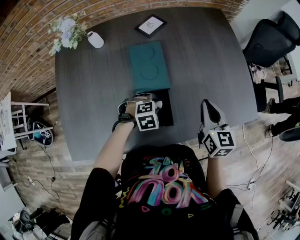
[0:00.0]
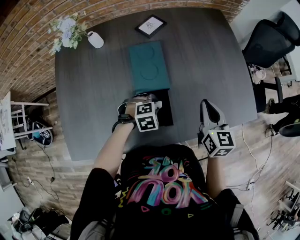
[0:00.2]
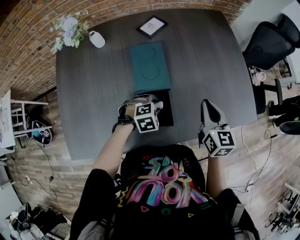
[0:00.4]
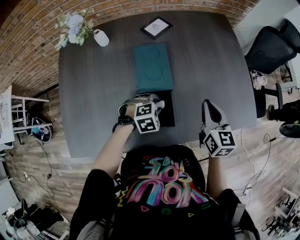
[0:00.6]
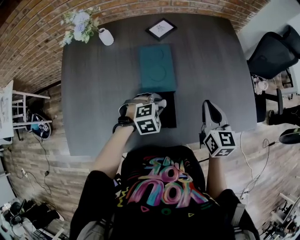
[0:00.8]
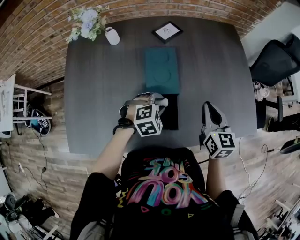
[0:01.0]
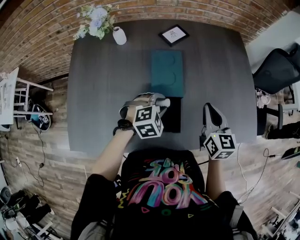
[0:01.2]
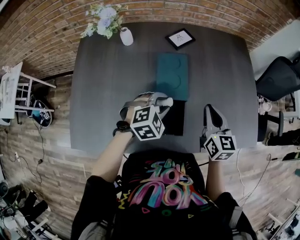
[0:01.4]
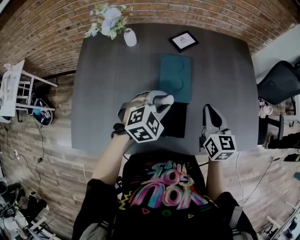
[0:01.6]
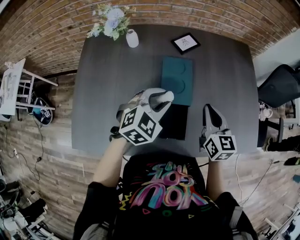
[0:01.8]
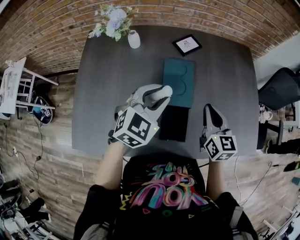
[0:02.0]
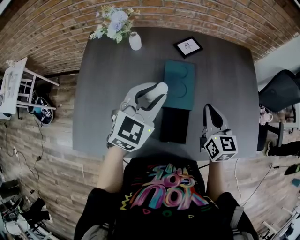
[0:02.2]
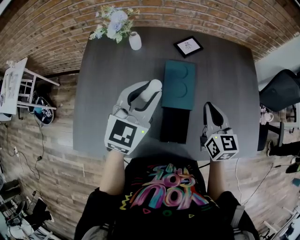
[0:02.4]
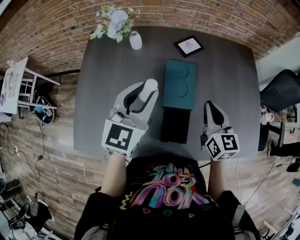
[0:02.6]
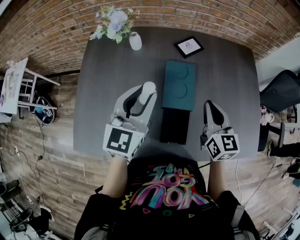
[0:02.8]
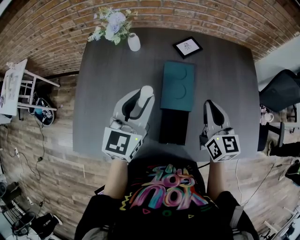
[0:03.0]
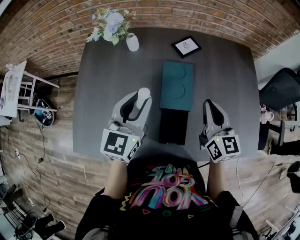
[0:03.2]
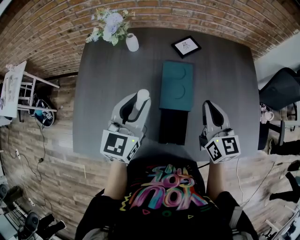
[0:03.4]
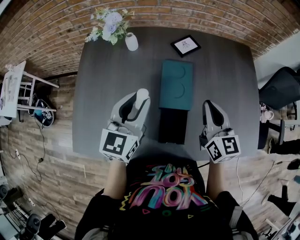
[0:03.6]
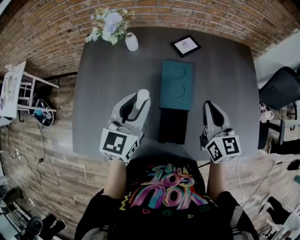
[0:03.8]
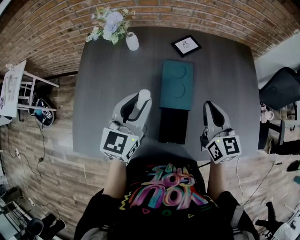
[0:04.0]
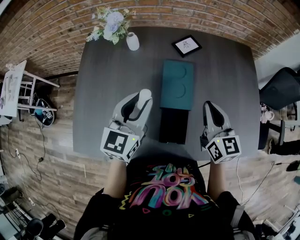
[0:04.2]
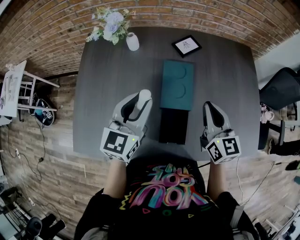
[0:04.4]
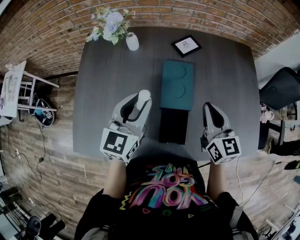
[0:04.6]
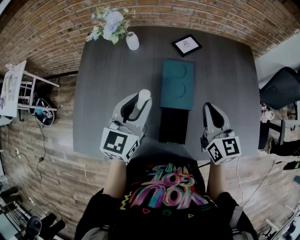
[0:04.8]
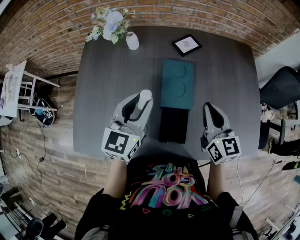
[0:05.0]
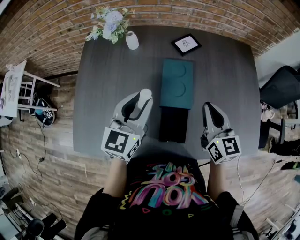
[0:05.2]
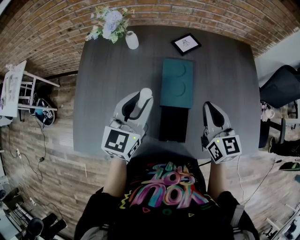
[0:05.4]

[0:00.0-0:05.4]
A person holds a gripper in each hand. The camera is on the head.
0:00.0 to 0:01.4: The right gripper heads to the left, covering approximately 5 cm. The left gripper shifts approximately 15 cm upward, and changes its angle by some 30 degrees.
0:01.4 to 0:02.8: The right gripper is displaced to the left by approximately 5 cm. Meanwhile the left gripper is displaced upward and to the left by approximately 20 cm, and points its fingers about 40 degrees further upward.
0:02.8 to 0:04.0: The grippers make only small movements.
0:04.0 to 0:05.4: The two grippers keep their place.

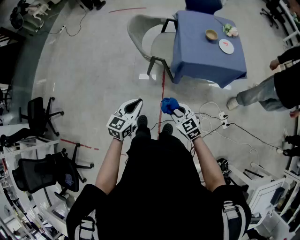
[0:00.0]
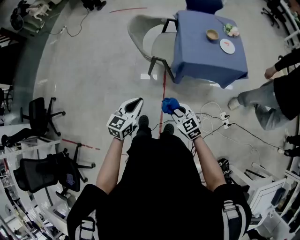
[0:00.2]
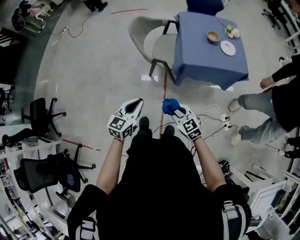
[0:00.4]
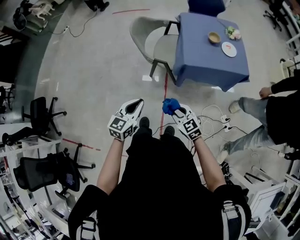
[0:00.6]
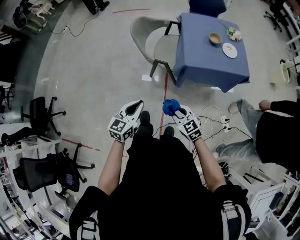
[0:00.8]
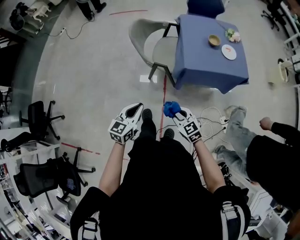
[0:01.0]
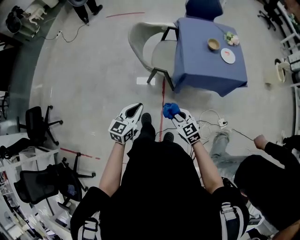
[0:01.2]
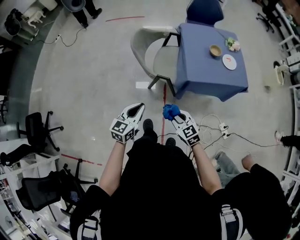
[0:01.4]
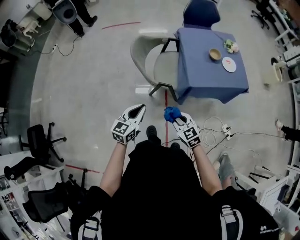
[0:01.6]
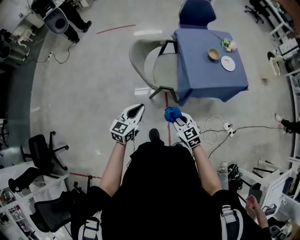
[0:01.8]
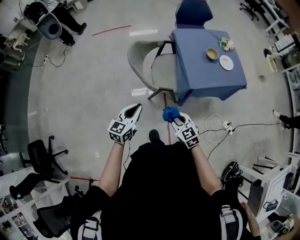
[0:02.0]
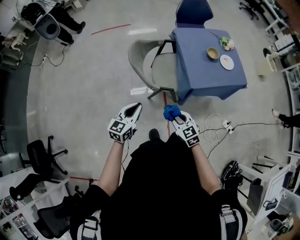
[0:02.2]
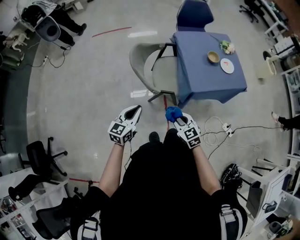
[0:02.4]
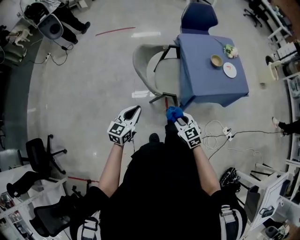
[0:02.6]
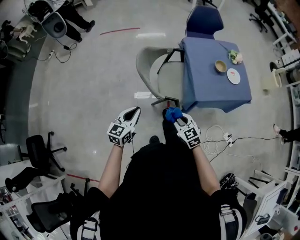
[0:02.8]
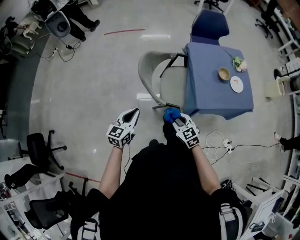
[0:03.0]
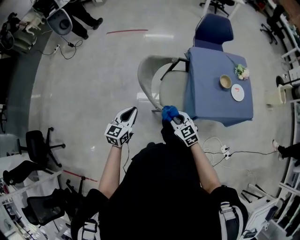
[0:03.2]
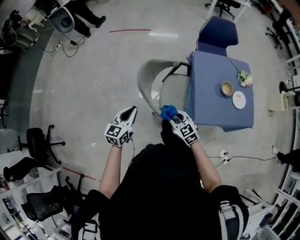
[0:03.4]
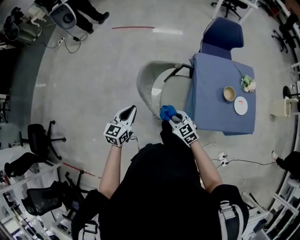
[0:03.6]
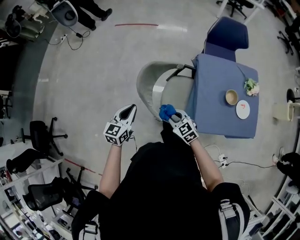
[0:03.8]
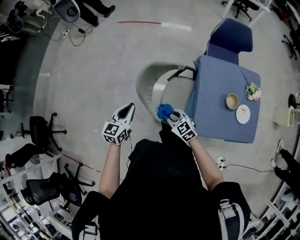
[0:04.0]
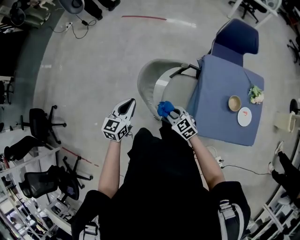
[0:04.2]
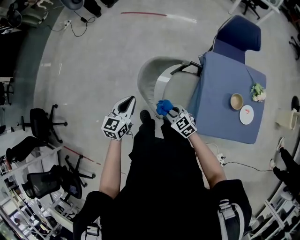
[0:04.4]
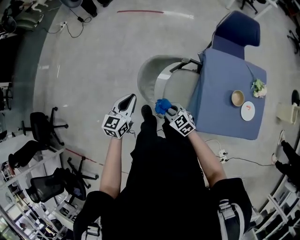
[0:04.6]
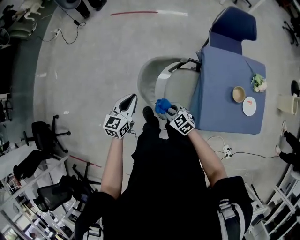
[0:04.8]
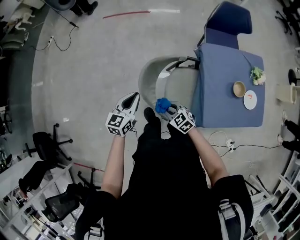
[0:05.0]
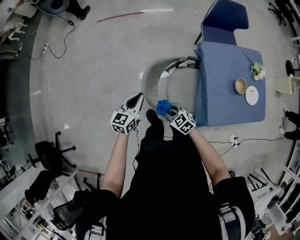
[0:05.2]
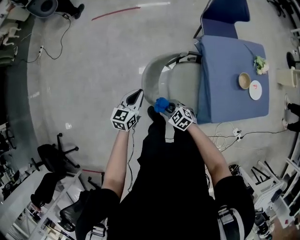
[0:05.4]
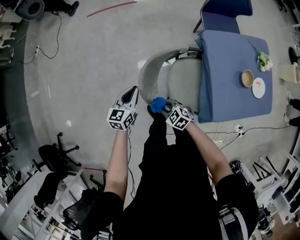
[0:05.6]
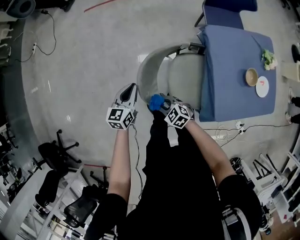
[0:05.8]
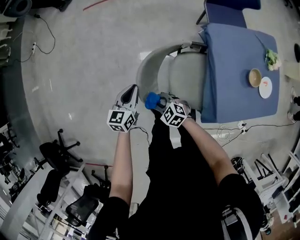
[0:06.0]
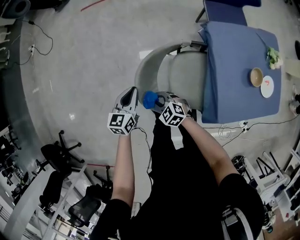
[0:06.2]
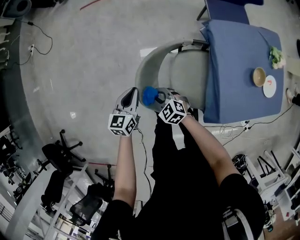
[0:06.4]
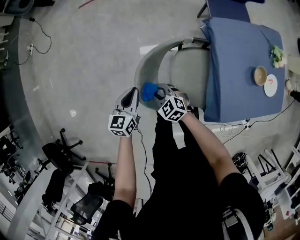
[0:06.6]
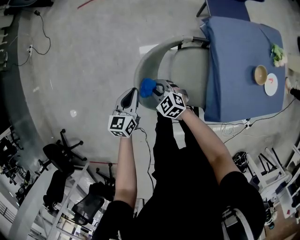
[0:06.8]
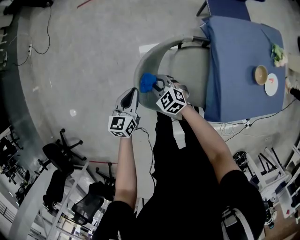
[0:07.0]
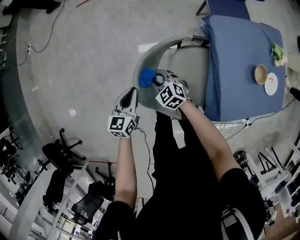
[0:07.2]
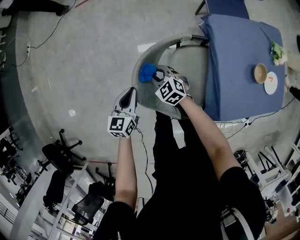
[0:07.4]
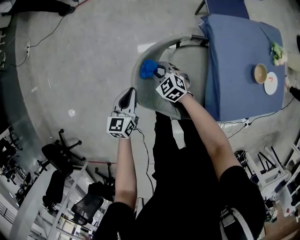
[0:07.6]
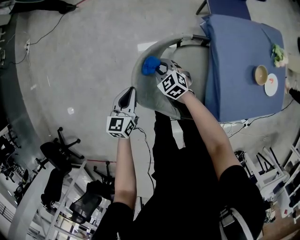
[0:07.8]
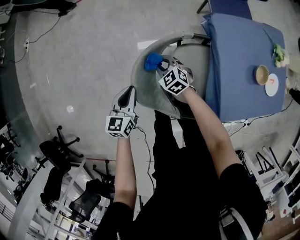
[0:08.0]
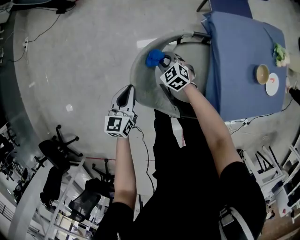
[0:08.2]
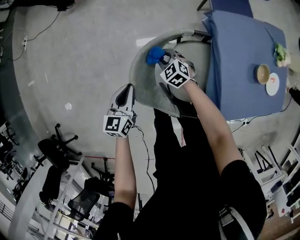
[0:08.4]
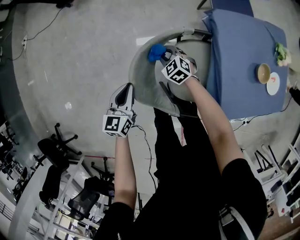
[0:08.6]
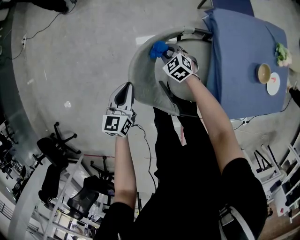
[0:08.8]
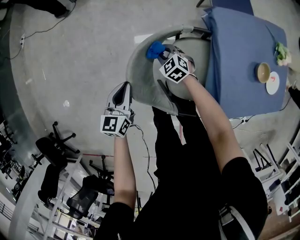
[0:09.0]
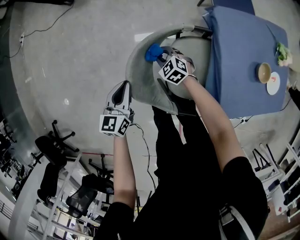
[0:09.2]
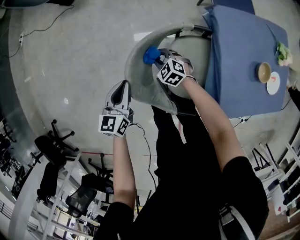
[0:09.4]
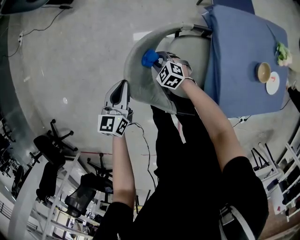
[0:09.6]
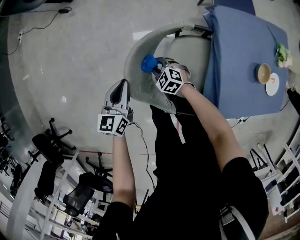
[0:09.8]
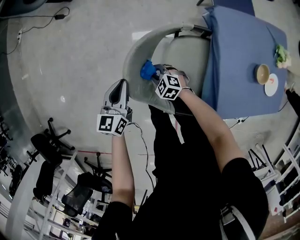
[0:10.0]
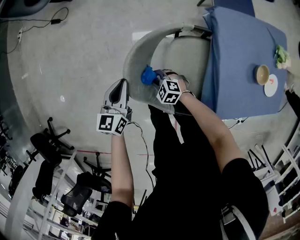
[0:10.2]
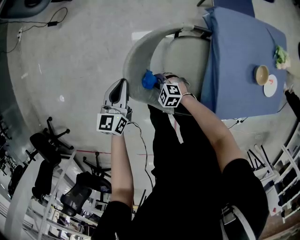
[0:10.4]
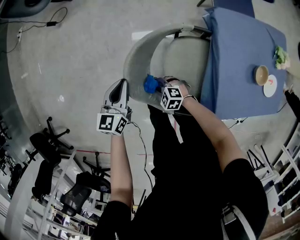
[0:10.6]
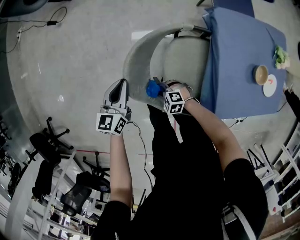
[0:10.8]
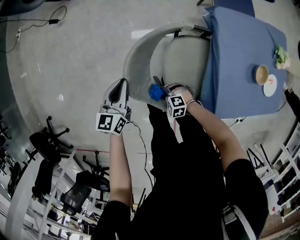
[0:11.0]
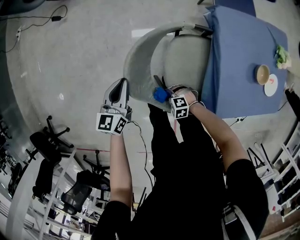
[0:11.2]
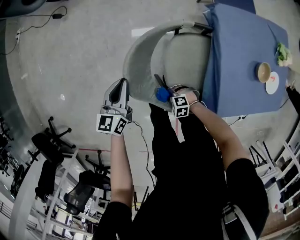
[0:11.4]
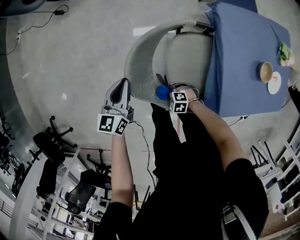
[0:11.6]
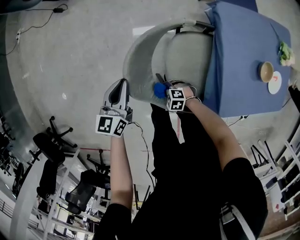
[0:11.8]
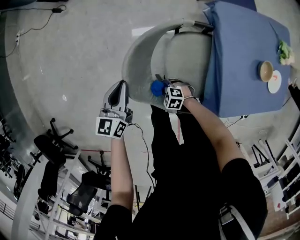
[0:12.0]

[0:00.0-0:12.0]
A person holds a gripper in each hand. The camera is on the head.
0:00.0 to 0:01.6: The right gripper goes about 20 cm forward and to the left; the left gripper travels forward by some 20 cm.
0:01.6 to 0:03.0: The right gripper heads forward, covering roughly 15 cm, while the left gripper heads forward and to the left, covering some 20 cm.
0:03.0 to 0:04.4: The grippers both shift forward by roughly 20 cm. The right gripper rotates some 20 degrees.
0:04.4 to 0:06.0: The left gripper shifts some 25 cm forward and downward. Meanwhile the right gripper goes roughly 25 cm downward, forward and to the left.
0:06.0 to 0:07.6: The right gripper travels forward and to the right by approximately 15 cm.
0:07.6 to 0:09.0: The right gripper travels downward by approximately 10 cm.
0:09.0 to 0:10.4: The right gripper moves backward and to the left, some 20 cm, and changes its angle by some 30 degrees.

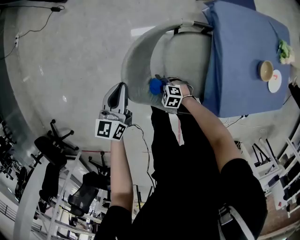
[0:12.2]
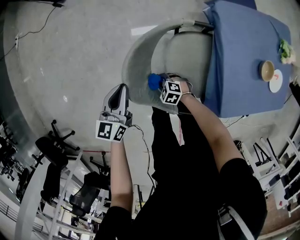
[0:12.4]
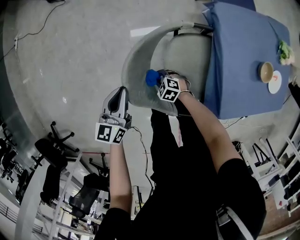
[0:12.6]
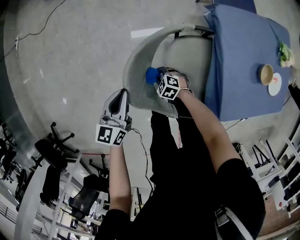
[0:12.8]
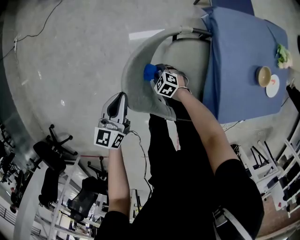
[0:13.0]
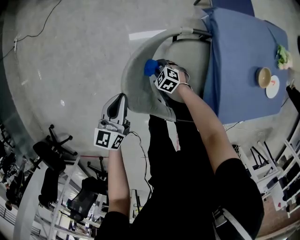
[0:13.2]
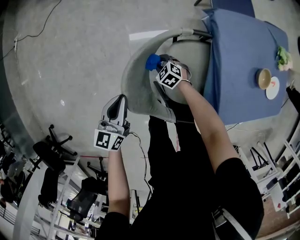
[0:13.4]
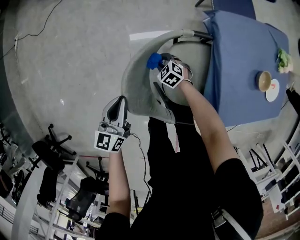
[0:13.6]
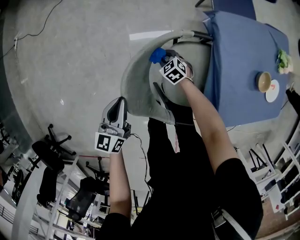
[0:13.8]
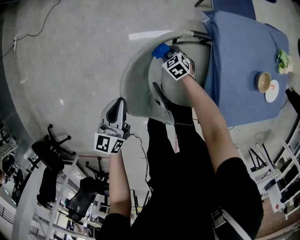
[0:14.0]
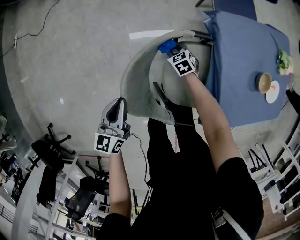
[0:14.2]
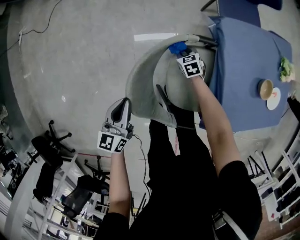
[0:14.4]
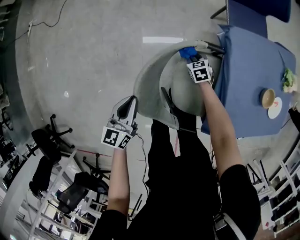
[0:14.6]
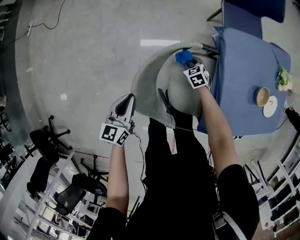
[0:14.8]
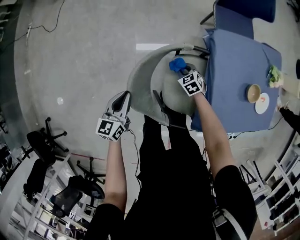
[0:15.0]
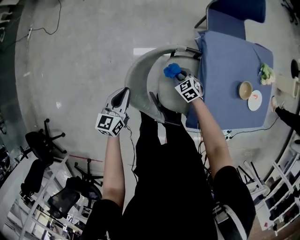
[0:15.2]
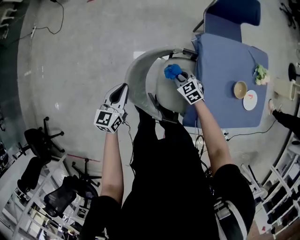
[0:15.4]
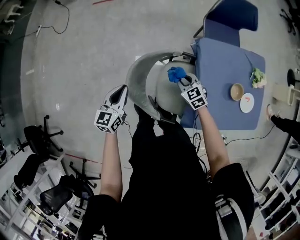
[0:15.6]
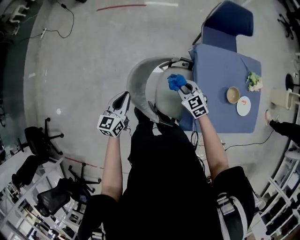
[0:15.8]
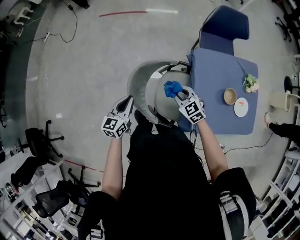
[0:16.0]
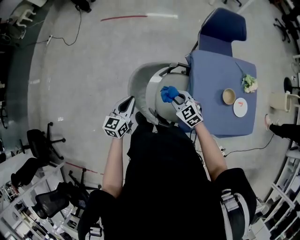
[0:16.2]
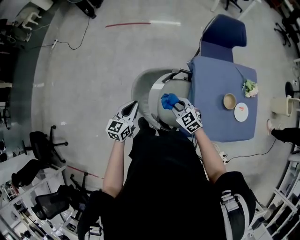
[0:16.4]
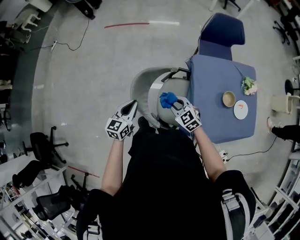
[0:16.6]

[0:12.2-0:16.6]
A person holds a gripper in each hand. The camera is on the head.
0:12.2 to 0:13.6: The right gripper is displaced forward and to the right by about 20 cm, and swivels some 20 degrees.
0:13.6 to 0:15.2: The left gripper travels upward by approximately 5 cm, while the right gripper moves upward and to the right, some 15 cm.
0:15.2 to 0:16.6: The right gripper moves upward and backward, approximately 30 cm, and swivels some 20 degrees, while the left gripper goes roughly 15 cm upward and backward.

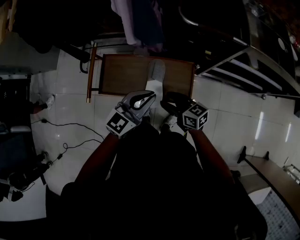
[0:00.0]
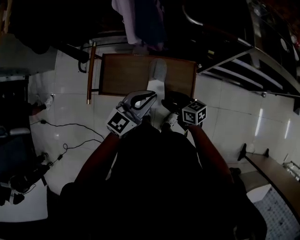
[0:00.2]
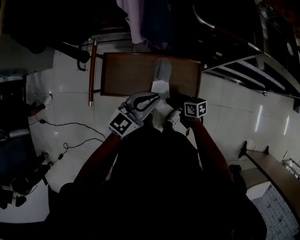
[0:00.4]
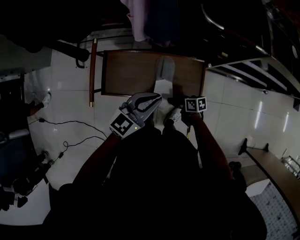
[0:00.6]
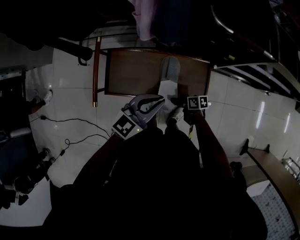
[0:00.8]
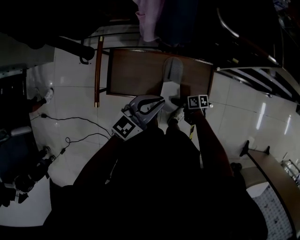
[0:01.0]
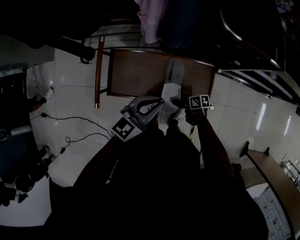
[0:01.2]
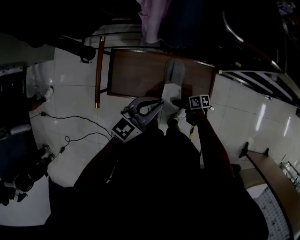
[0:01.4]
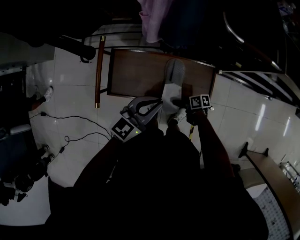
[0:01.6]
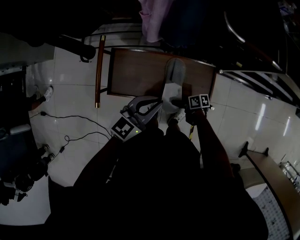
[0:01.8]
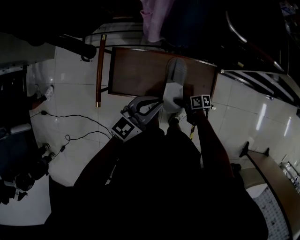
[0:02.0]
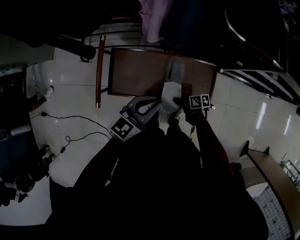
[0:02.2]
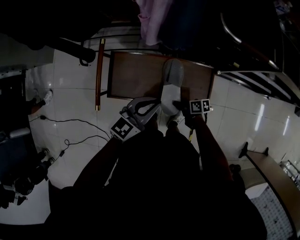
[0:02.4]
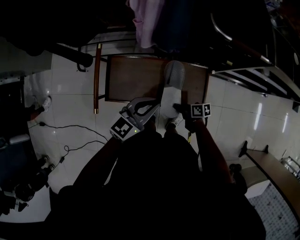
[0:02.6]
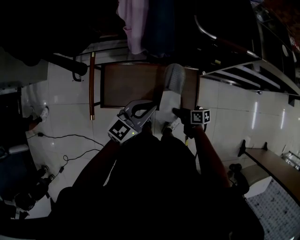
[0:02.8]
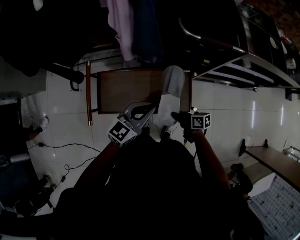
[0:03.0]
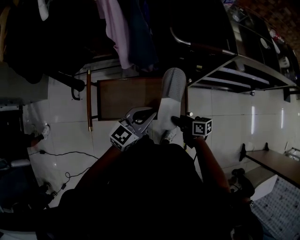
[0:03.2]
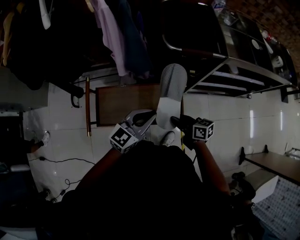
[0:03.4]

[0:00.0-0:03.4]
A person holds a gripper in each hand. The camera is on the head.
0:00.0 to 0:01.6: The right gripper travels downward by approximately 25 cm, and rolls clockwise, seen from behind, by roughly 40 degrees. Meanwhile the left gripper changes place by roughly 15 cm.
0:01.6 to 0:03.4: The right gripper travels upward by approximately 25 cm, turns by roughly 40 degrees, and closes up; the left gripper shifts by roughly 10 cm.
